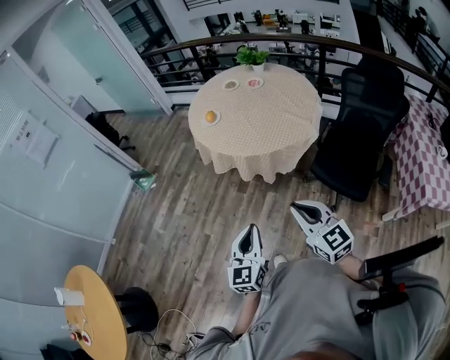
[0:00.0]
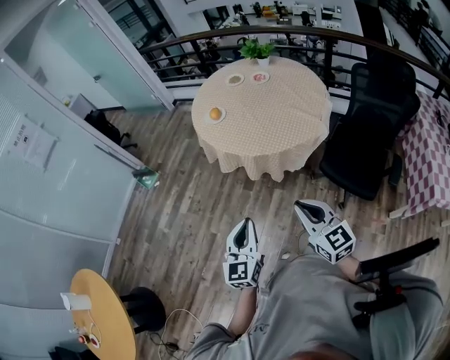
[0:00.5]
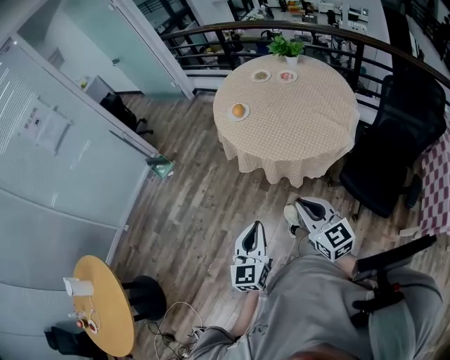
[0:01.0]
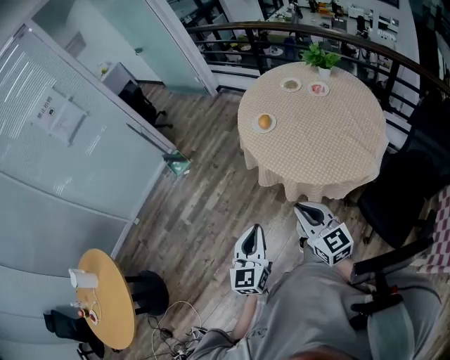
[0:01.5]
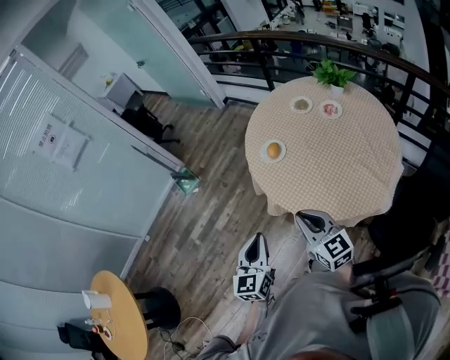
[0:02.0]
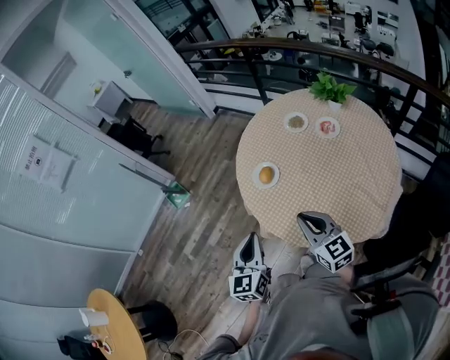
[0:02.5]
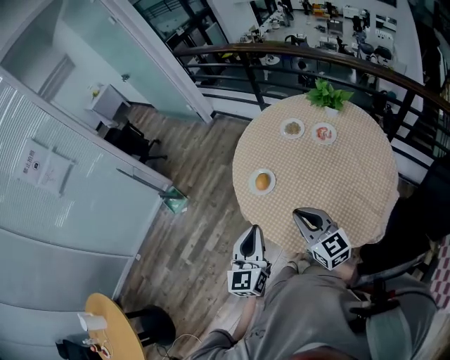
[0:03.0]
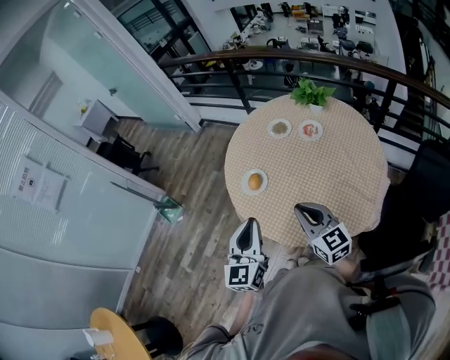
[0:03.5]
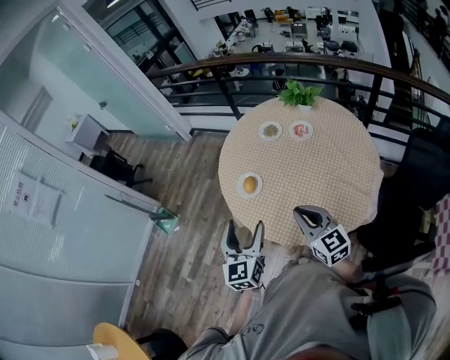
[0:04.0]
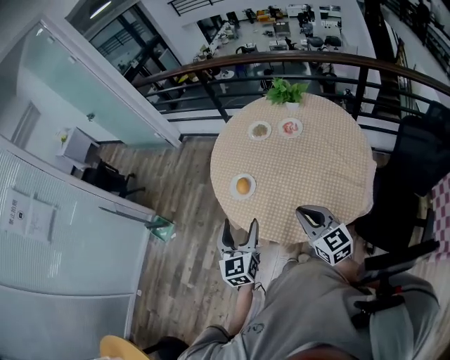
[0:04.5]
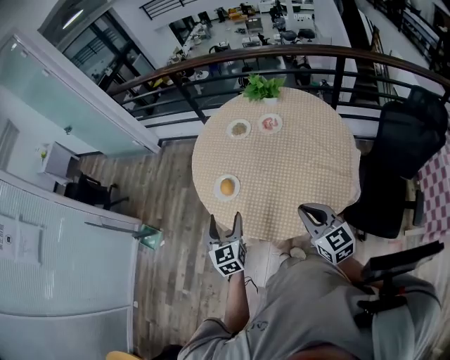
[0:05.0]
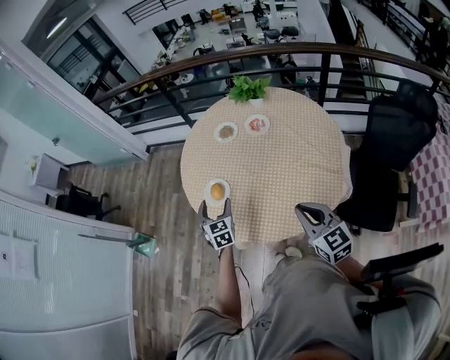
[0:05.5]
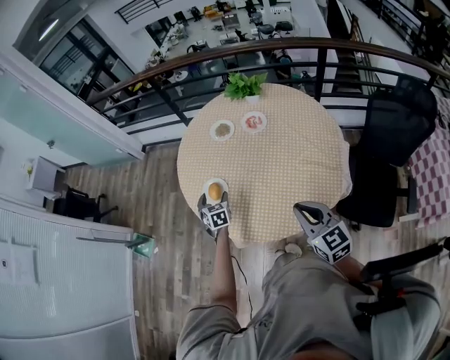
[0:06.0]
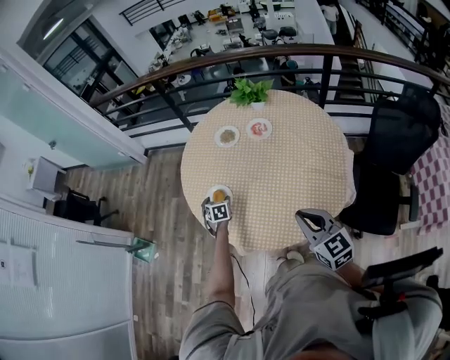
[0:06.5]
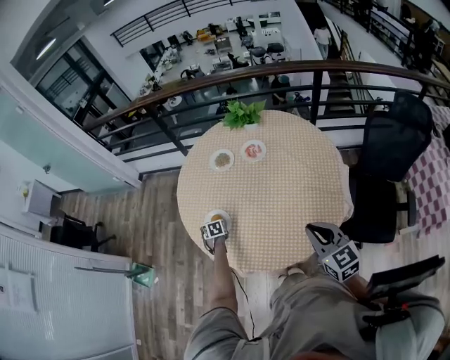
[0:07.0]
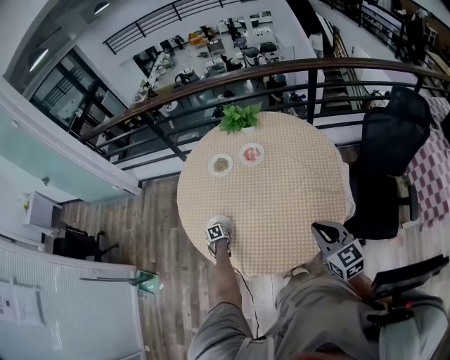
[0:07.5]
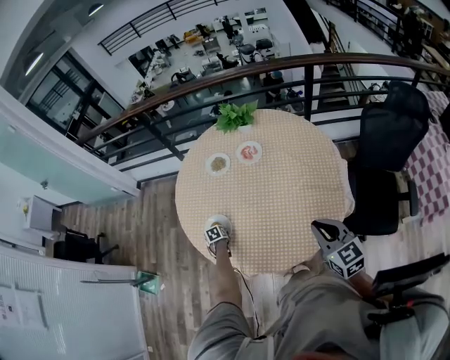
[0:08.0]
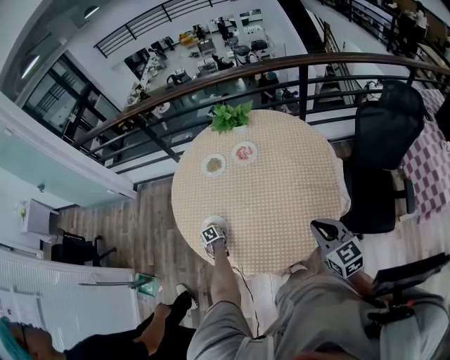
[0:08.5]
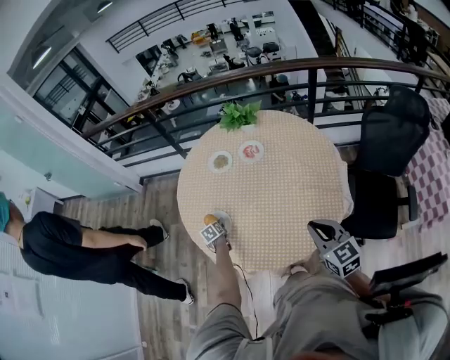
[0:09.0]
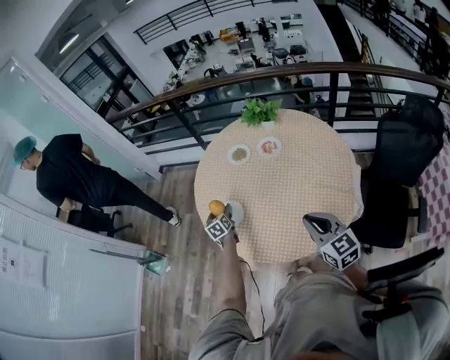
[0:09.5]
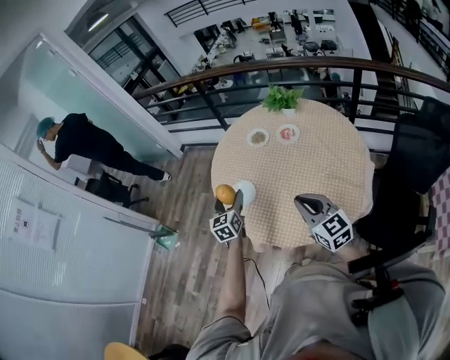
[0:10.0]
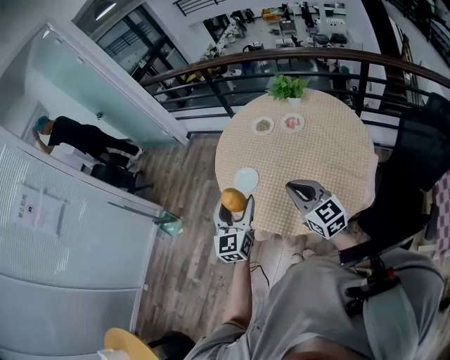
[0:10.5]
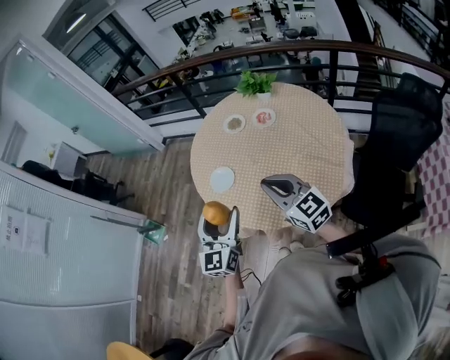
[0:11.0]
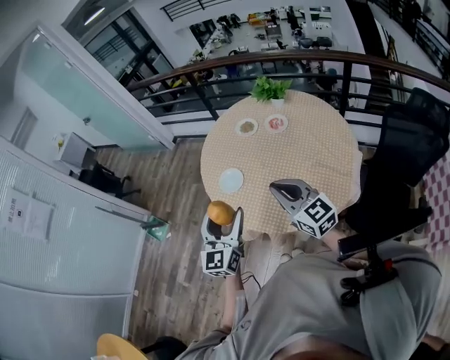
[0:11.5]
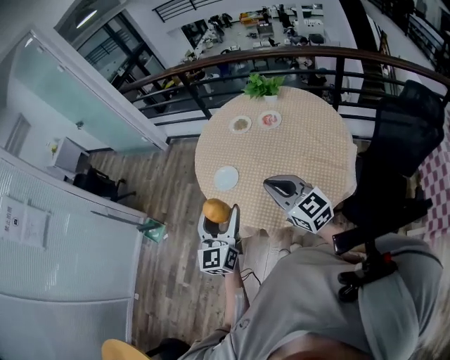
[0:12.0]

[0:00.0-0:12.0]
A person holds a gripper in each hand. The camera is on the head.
0:00.0 to 0:02.0: Both grippers are carried forward, about 40 cm.
0:02.0 to 0:04.0: The right gripper goes about 15 cm forward and to the right, while the left gripper goes roughly 20 cm forward, and opens.
0:04.0 to 0:06.0: The left gripper heads downward and forward, covering some 35 cm, and points its fingers roughly 30 degrees further downward. The right gripper heads to the right, covering about 5 cm.
0:06.0 to 0:08.0: The right gripper is displaced to the right by approximately 5 cm, while the left gripper heads downward, covering some 20 cm, and swivels some 40 degrees.
0:08.0 to 0:10.0: The left gripper travels upward by approximately 40 cm, and tilts its fingers about 50 degrees upward; the right gripper moves to the left, about 10 cm, and swivels some 20 degrees.
0:10.0 to 0:12.0: The right gripper changes place by some 5 cm, while the left gripper is displaced backward and upward by roughly 25 cm, and rotates approximately 20 degrees.

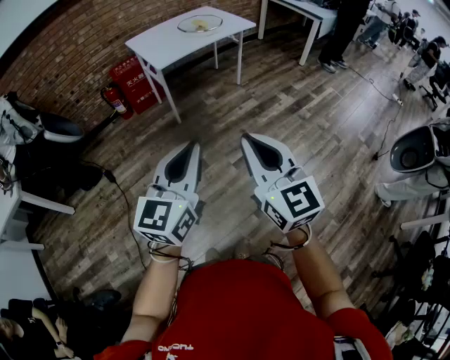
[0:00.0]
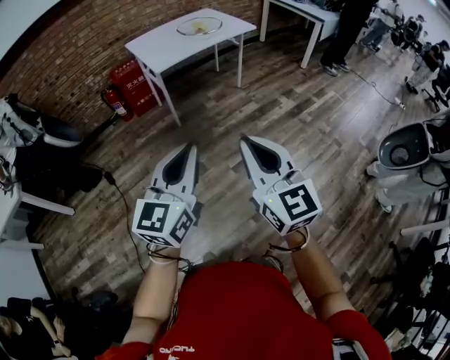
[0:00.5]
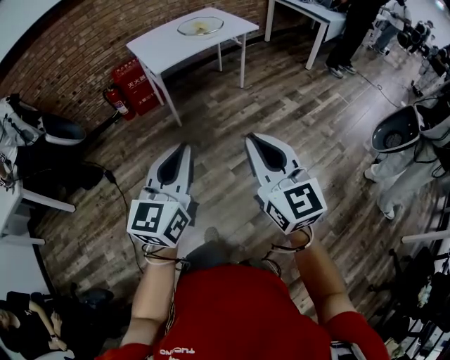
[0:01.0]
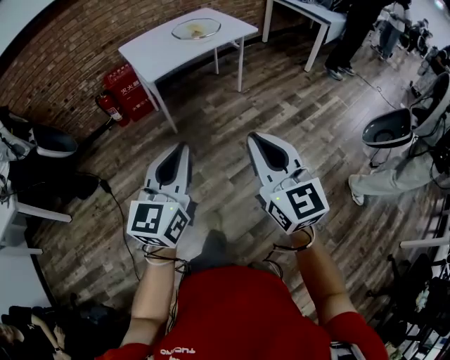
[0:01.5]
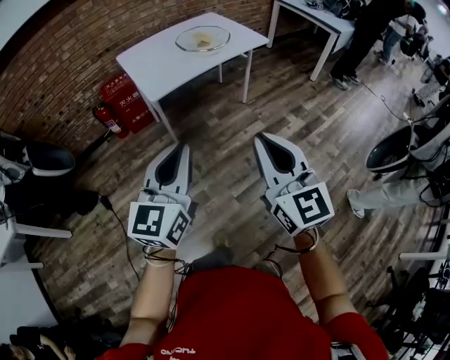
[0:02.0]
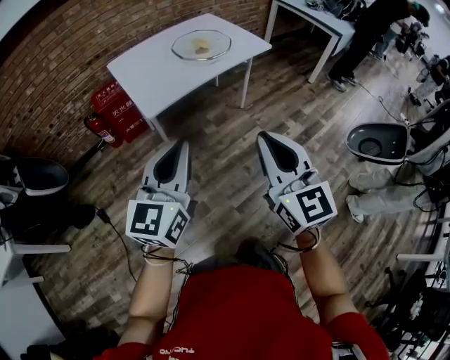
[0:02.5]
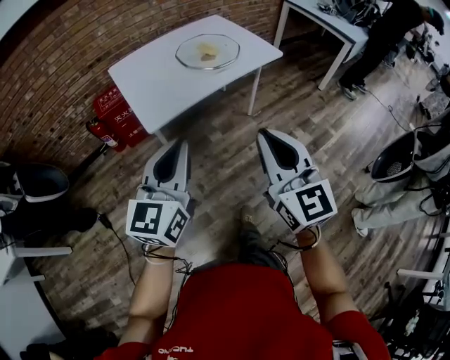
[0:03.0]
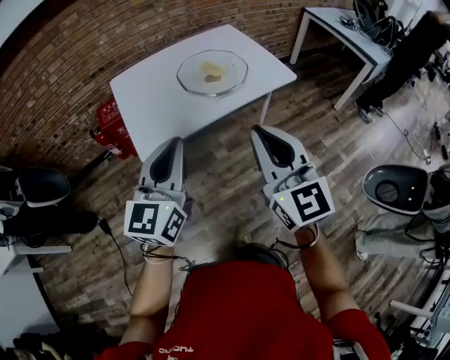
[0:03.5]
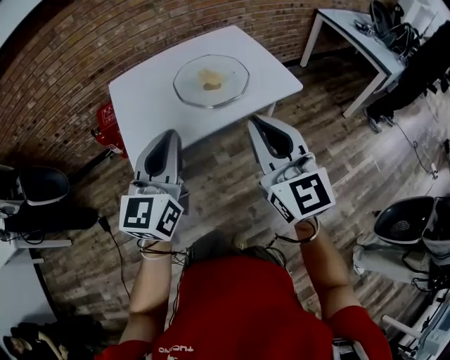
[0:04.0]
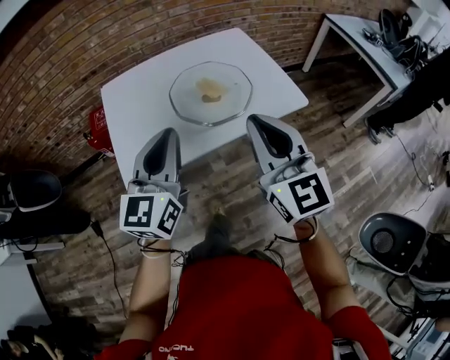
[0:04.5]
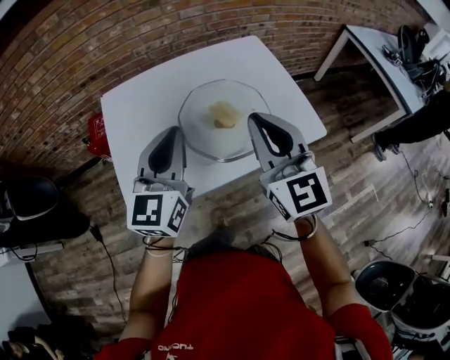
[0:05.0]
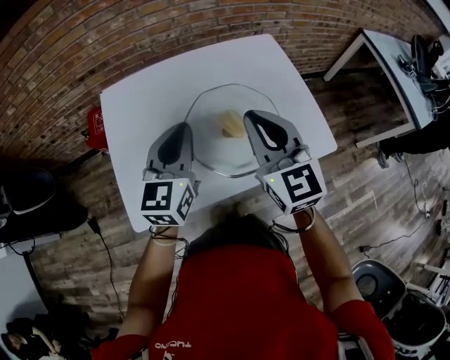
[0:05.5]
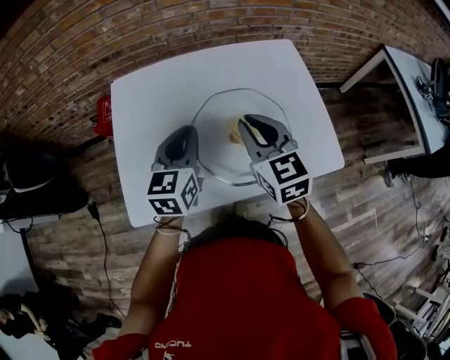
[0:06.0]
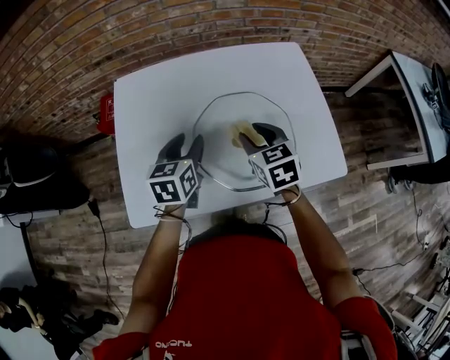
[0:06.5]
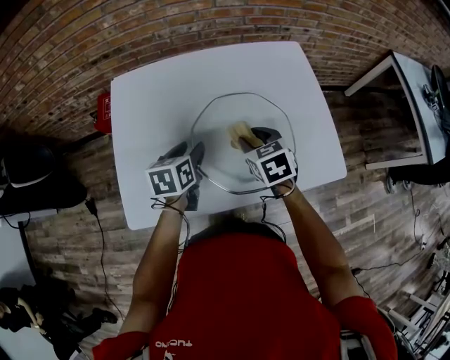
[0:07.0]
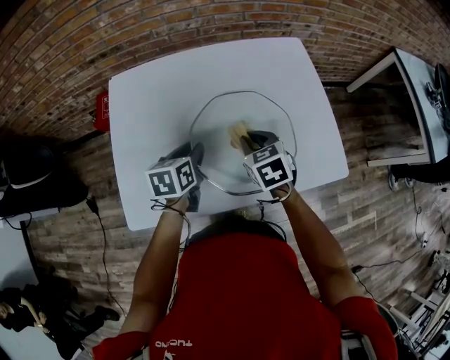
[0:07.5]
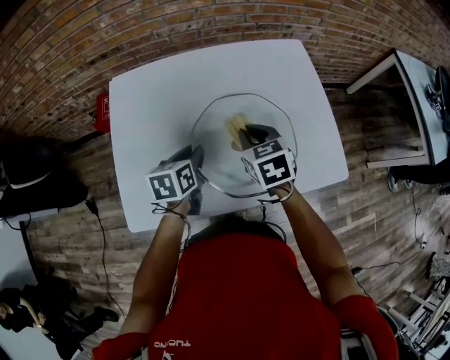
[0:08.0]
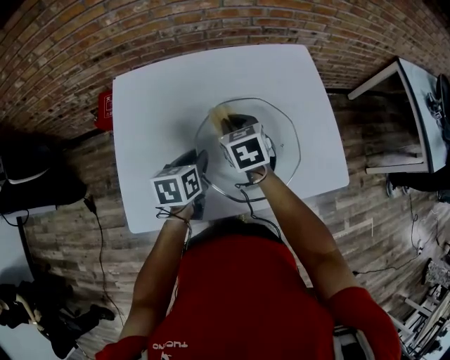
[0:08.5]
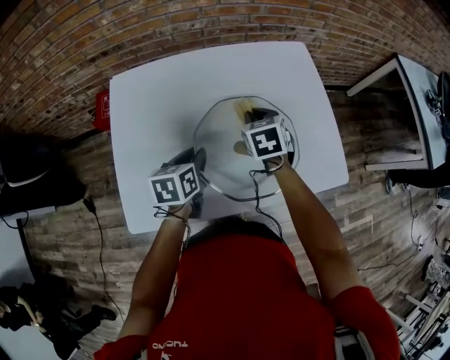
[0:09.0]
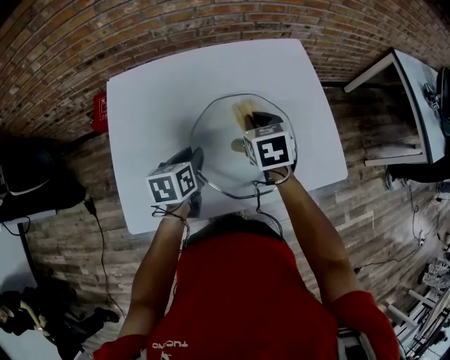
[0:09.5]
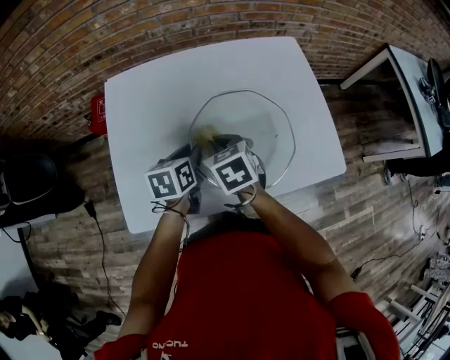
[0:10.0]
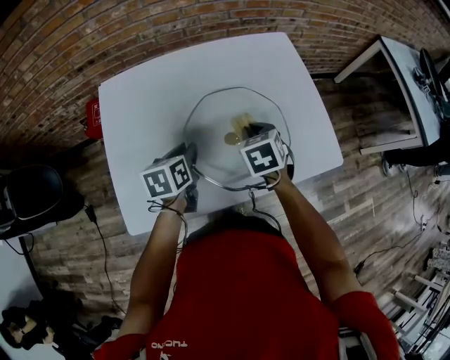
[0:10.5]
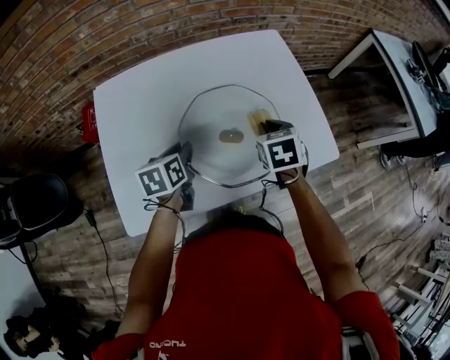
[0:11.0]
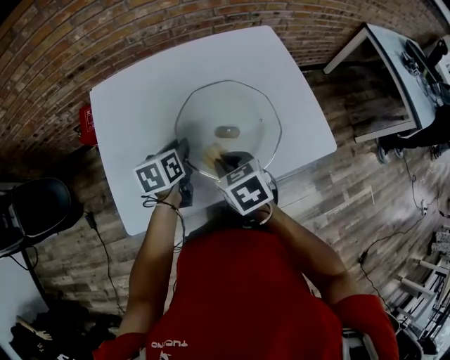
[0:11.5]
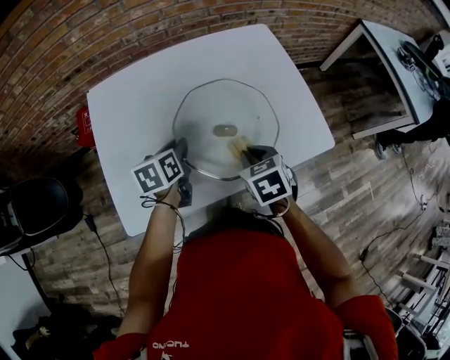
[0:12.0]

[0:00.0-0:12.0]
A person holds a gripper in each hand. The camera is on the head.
0:00.0 to 0:02.0: The grippers both shift forward by roughly 30 cm.
0:02.0 to 0:04.0: Both grippers are carried forward, some 50 cm.
0:04.0 to 0:06.0: The left gripper shifts about 40 cm forward and downward, and changes its angle by roughly 30 degrees. Meanwhile the right gripper heads forward, covering about 40 cm, and rotates approximately 30 degrees.
0:06.0 to 0:08.0: The two grippers go approximately 10 cm downward. The left gripper turns by roughly 30 degrees, and opens its fingers; the right gripper turns by approximately 30 degrees, and opens, then closes once more.
0:08.0 to 0:10.0: The right gripper goes left and right, some 10 cm each way, reversing 2 times.
0:10.0 to 0:12.0: The right gripper swings left and right, about 20 cm each way, with 2 reversals.

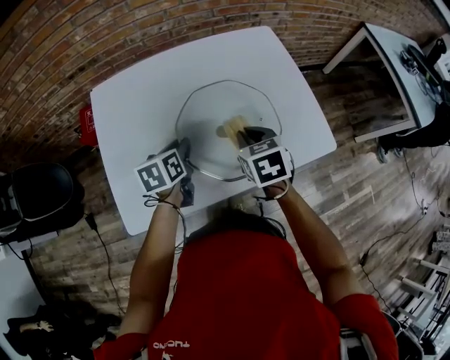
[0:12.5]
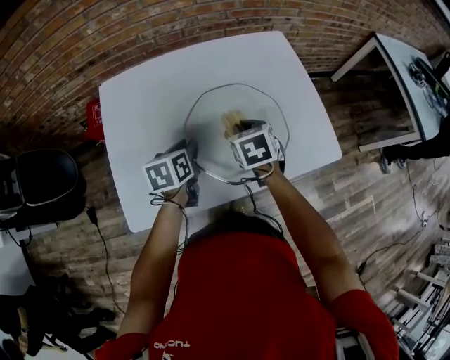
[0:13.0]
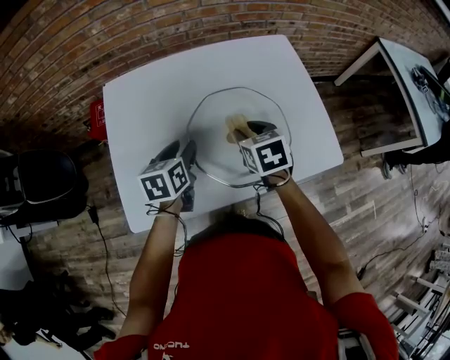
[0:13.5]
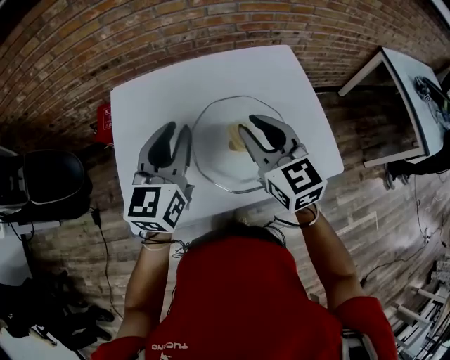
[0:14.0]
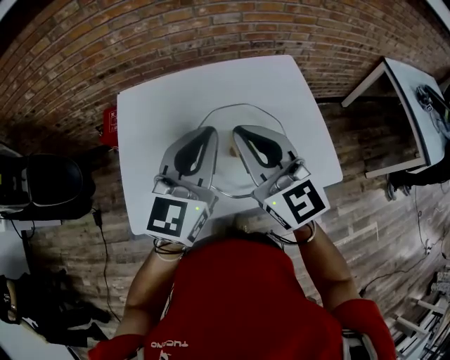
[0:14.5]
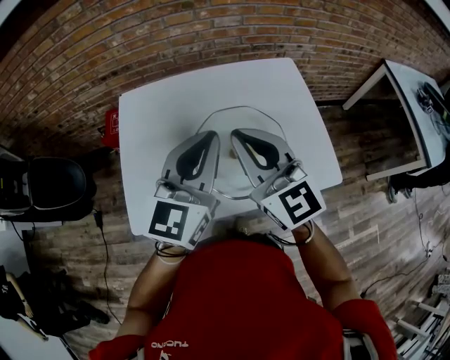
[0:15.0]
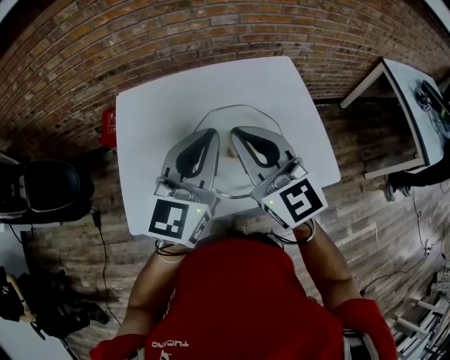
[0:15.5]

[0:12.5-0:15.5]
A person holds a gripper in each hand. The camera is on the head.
0:12.5 to 0:14.0: The two grippers go some 20 cm upward. The right gripper points its fingers roughly 30 degrees further upward, while the left gripper tips its fingers upward by some 30 degrees.
0:14.0 to 0:15.5: The right gripper shifts some 5 cm upward, and closes up. Meanwhile the left gripper goes roughly 10 cm to the right and upward, and closes up.
